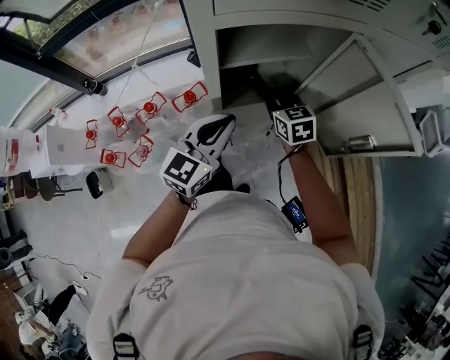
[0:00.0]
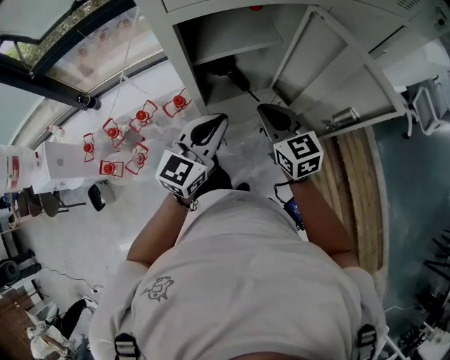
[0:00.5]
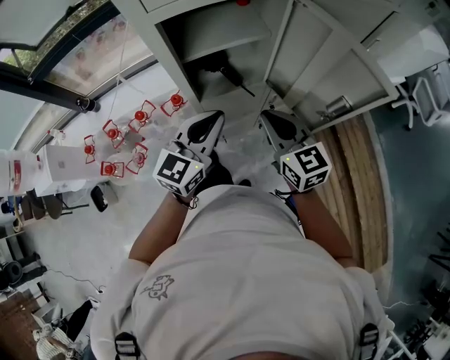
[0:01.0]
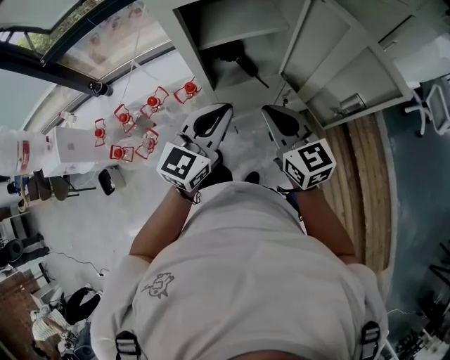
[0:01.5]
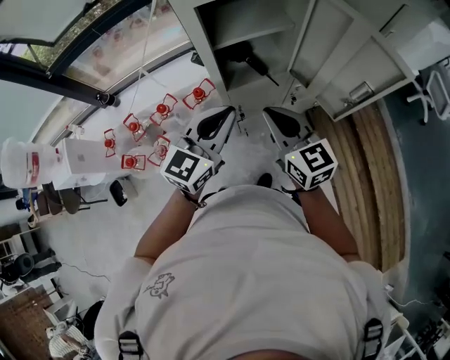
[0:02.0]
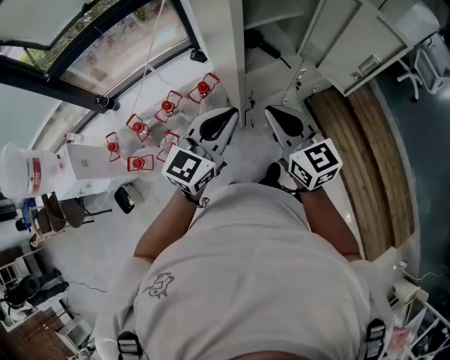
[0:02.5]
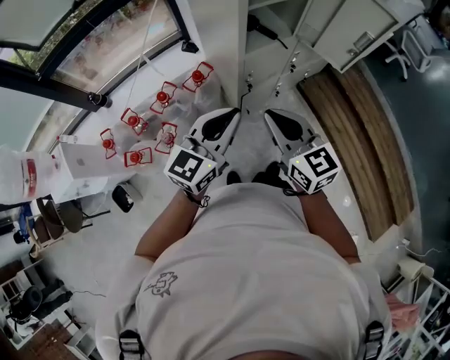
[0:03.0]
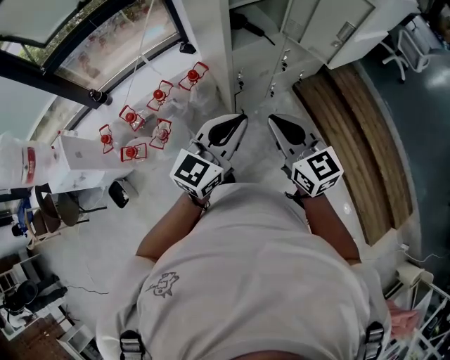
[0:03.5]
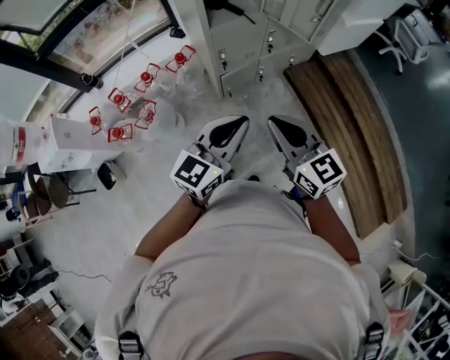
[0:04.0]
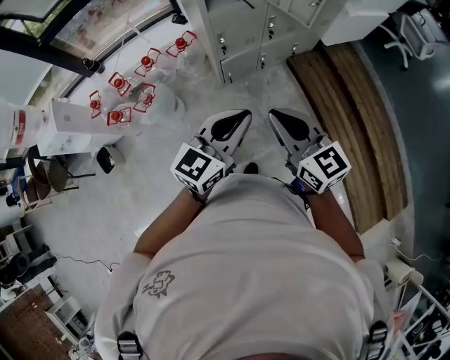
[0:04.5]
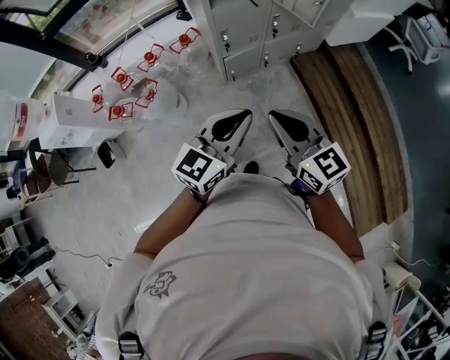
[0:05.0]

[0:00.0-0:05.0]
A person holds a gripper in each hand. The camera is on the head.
0:00.0 to 0:02.5: The left gripper is displaced backward and to the left by about 20 cm. The right gripper goes roughly 30 cm backward and upward, and swivels roughly 20 degrees.
0:02.5 to 0:05.0: Both grippers move backward and to the right, about 35 cm.

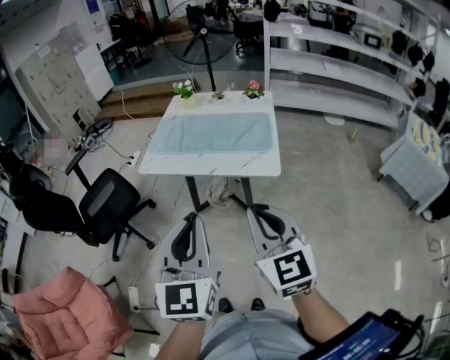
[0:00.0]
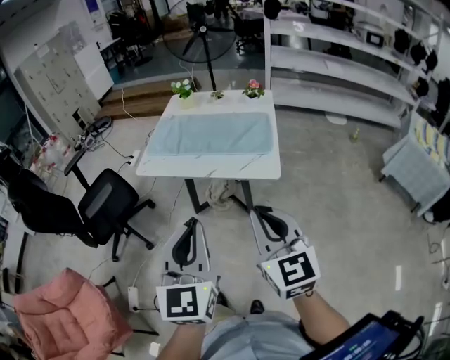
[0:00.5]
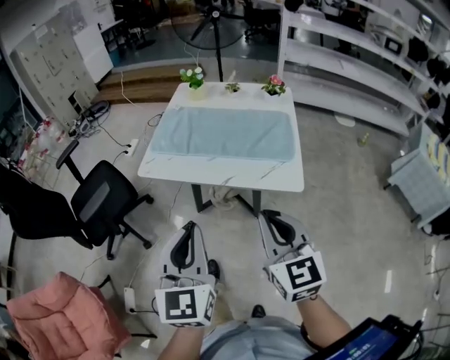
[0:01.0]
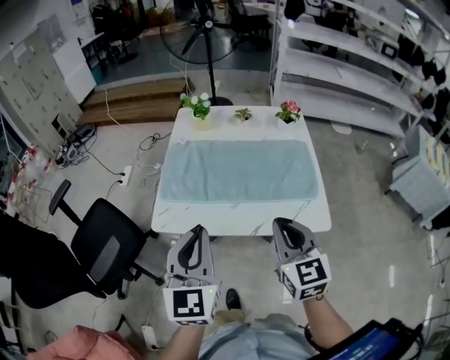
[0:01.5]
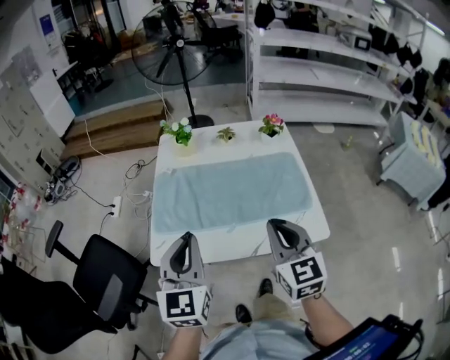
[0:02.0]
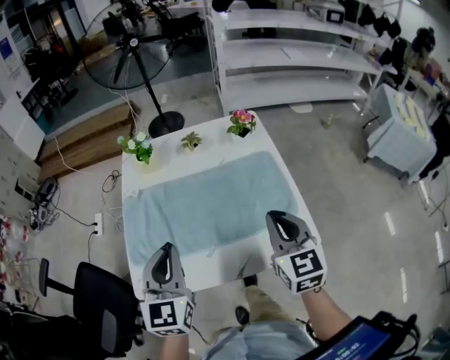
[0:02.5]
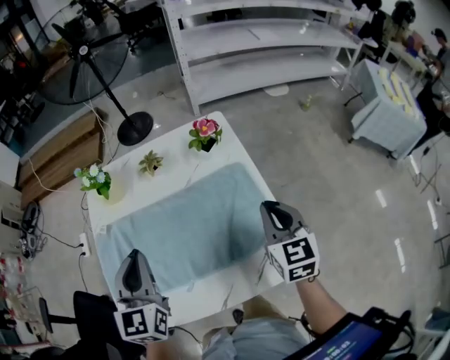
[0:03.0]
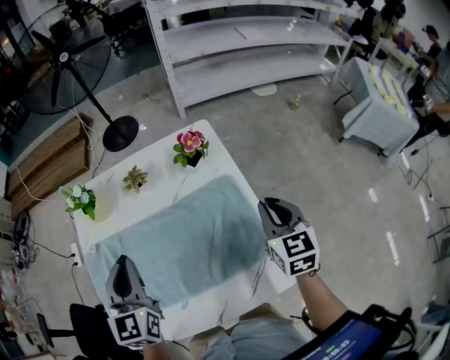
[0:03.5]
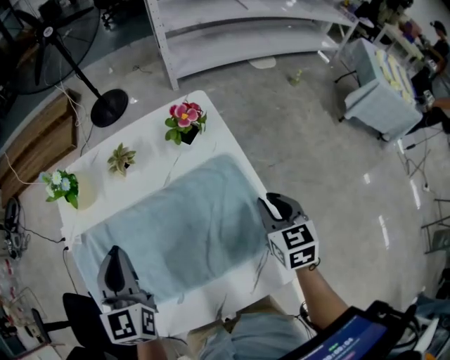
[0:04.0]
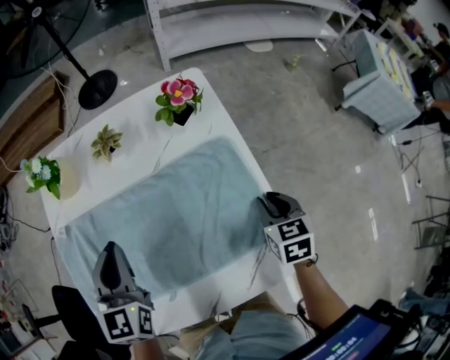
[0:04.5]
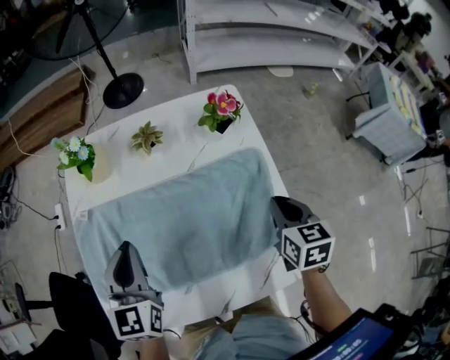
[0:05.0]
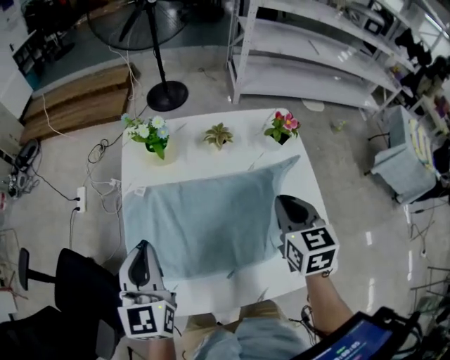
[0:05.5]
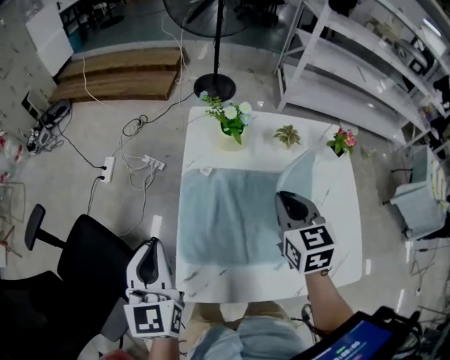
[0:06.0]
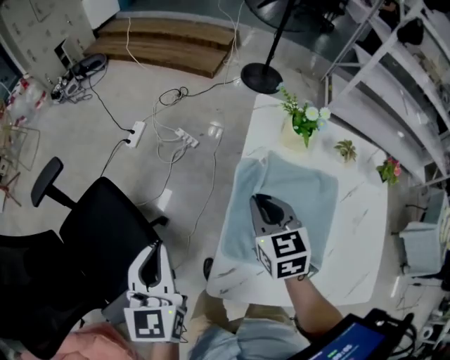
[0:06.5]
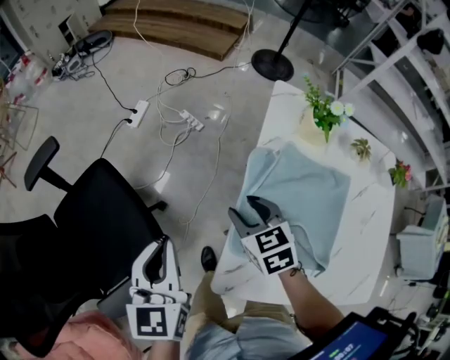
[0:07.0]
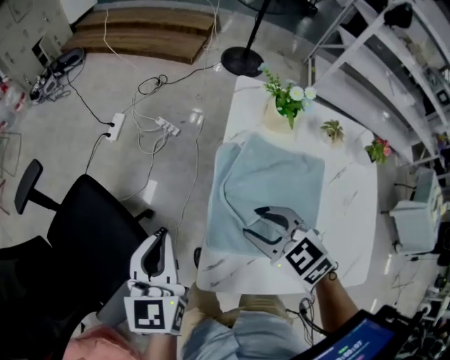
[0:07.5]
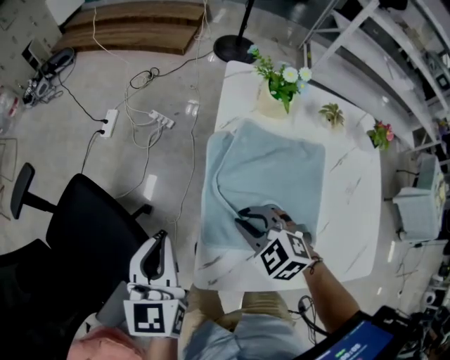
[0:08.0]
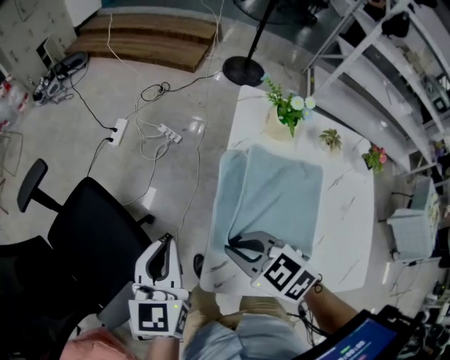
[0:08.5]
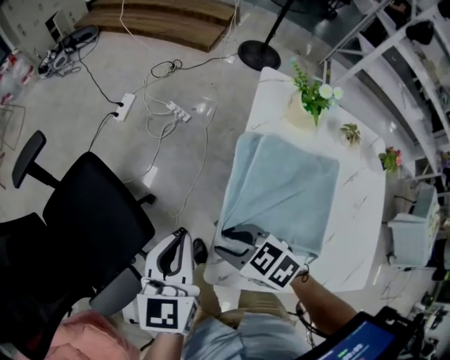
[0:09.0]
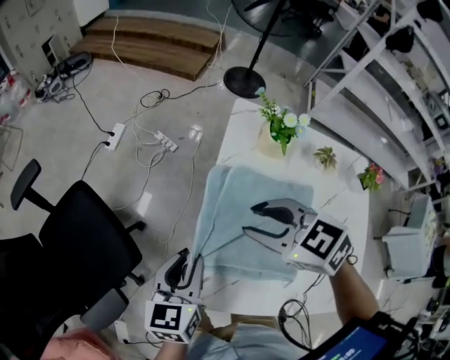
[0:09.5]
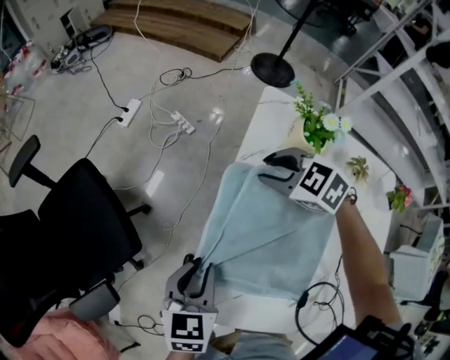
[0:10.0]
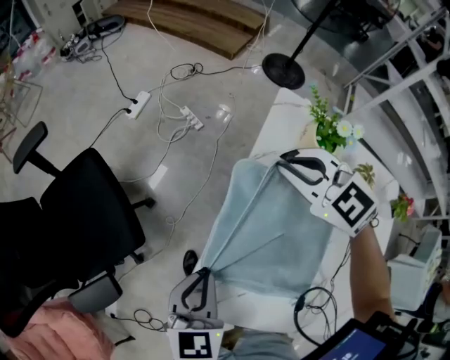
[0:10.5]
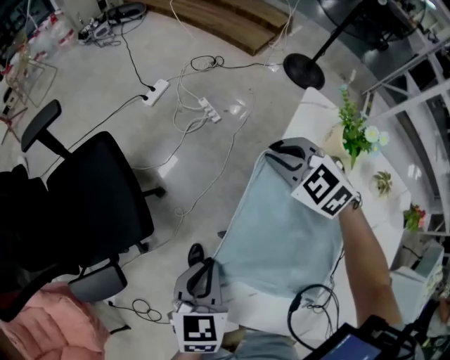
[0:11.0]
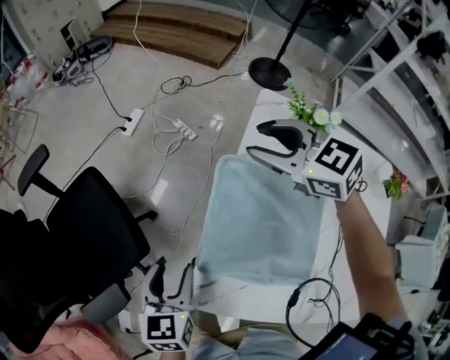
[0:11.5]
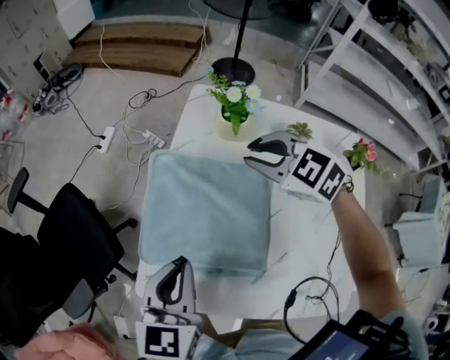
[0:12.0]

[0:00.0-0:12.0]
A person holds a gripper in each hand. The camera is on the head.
0:00.0 to 0:02.0: Both grippers move forward, about 35 cm.
0:02.0 to 0:04.0: The left gripper is displaced forward by about 30 cm; the right gripper moves forward, to the right and downward, some 40 cm, and rotates roughly 30 degrees.
0:04.0 to 0:06.0: The right gripper is displaced to the left by about 40 cm, and rotates some 20 degrees. The left gripper heads to the left and backward, covering about 35 cm, and turns by some 20 degrees.
0:06.0 to 0:08.0: The right gripper is displaced to the left and downward by some 25 cm, turns by approximately 50 degrees, and opens, then closes once more. The left gripper travels downward and to the left by some 10 cm.
0:08.0 to 0:10.0: The left gripper travels downward and to the right by some 10 cm, while the right gripper heads forward and to the right, covering roughly 20 cm.
0:10.0 to 0:12.0: The two grippers go approximately 15 cm upward, to the right and backward. The left gripper opens, then closes again.

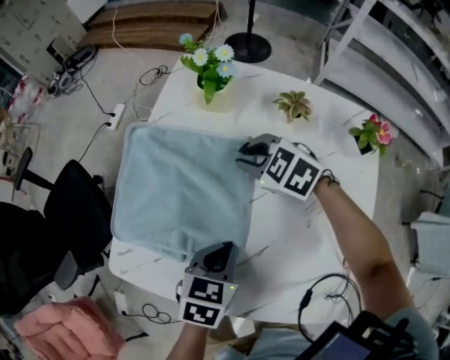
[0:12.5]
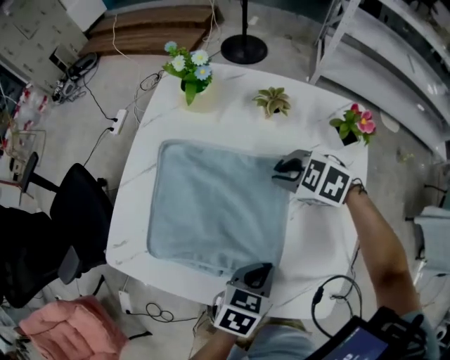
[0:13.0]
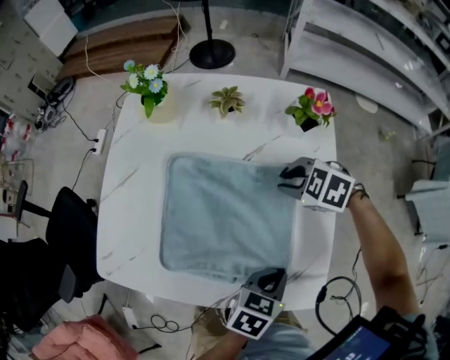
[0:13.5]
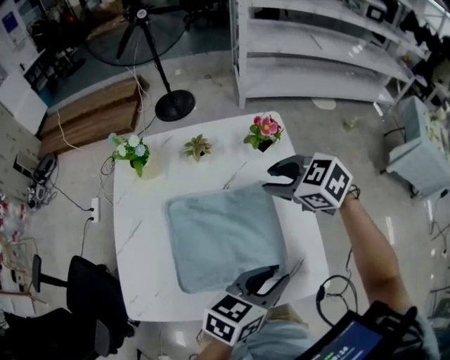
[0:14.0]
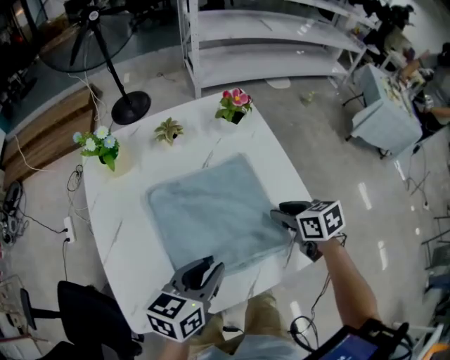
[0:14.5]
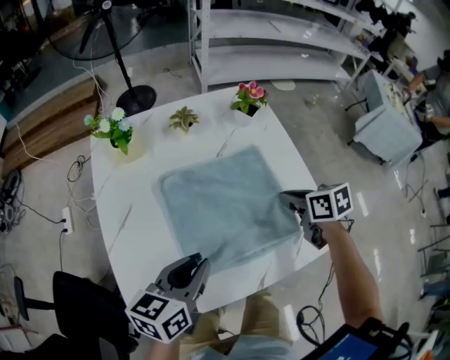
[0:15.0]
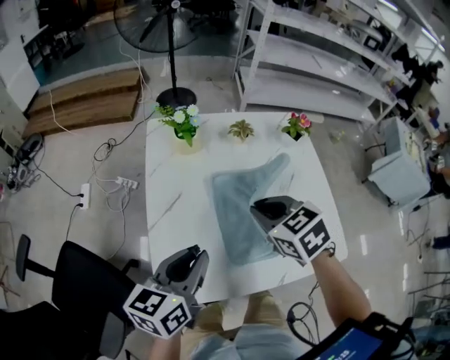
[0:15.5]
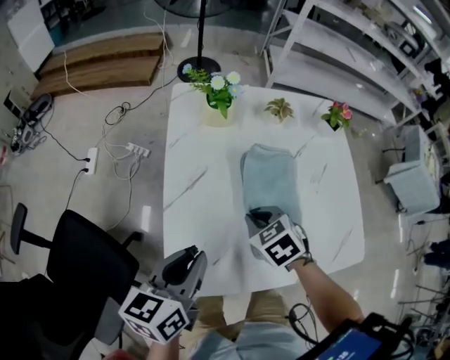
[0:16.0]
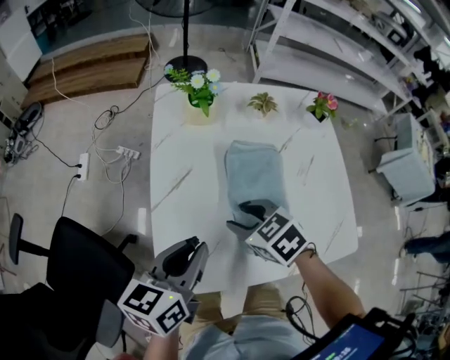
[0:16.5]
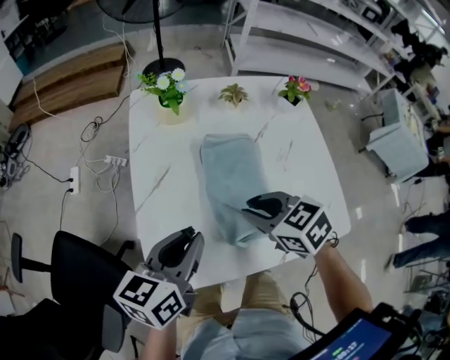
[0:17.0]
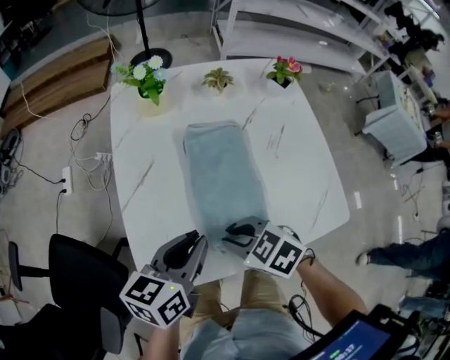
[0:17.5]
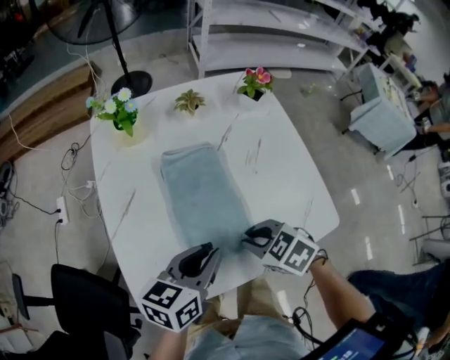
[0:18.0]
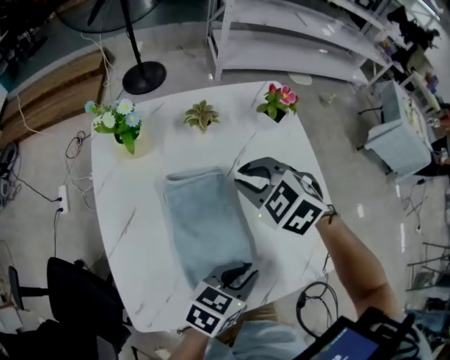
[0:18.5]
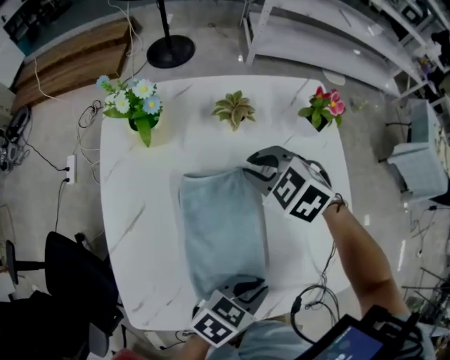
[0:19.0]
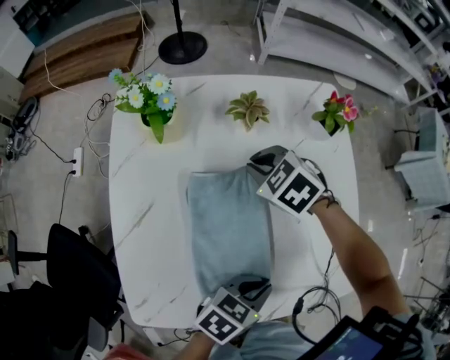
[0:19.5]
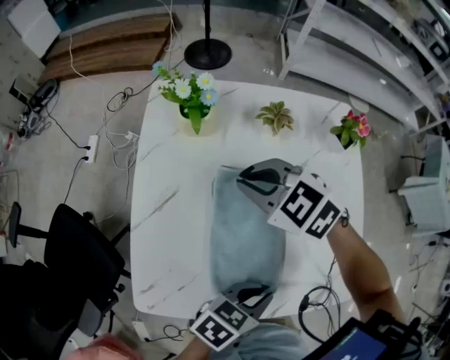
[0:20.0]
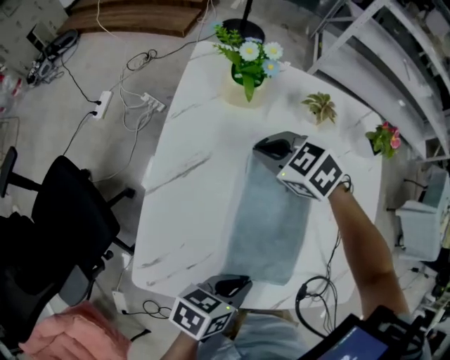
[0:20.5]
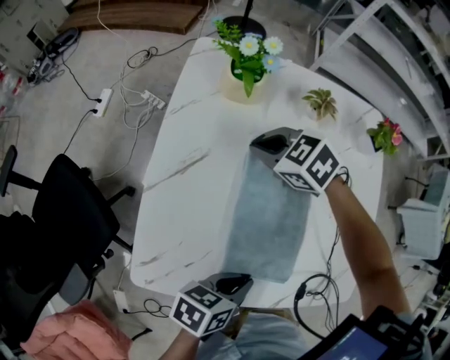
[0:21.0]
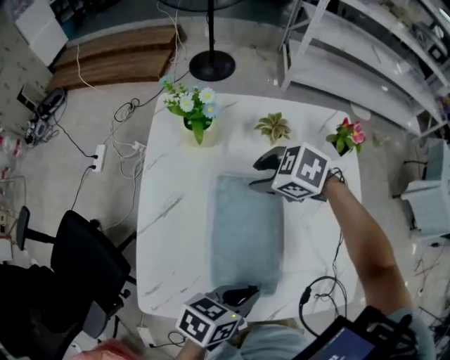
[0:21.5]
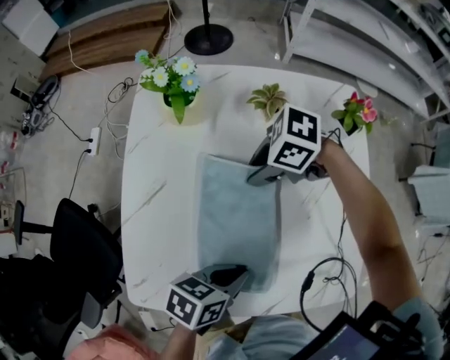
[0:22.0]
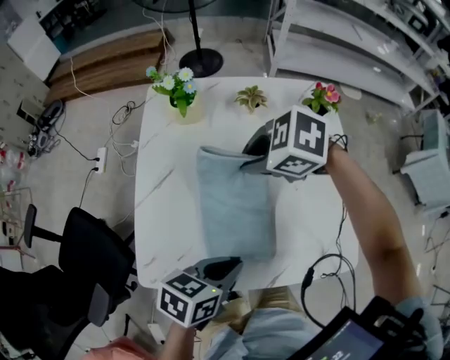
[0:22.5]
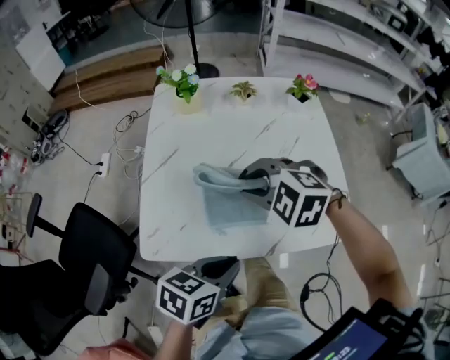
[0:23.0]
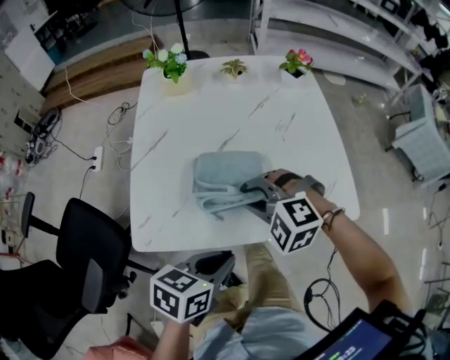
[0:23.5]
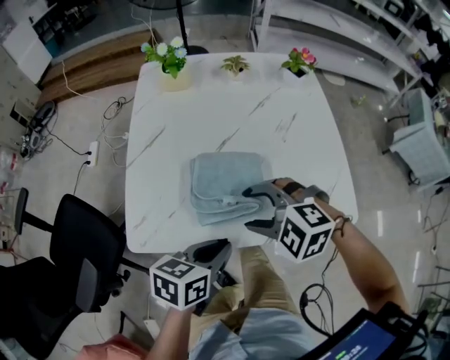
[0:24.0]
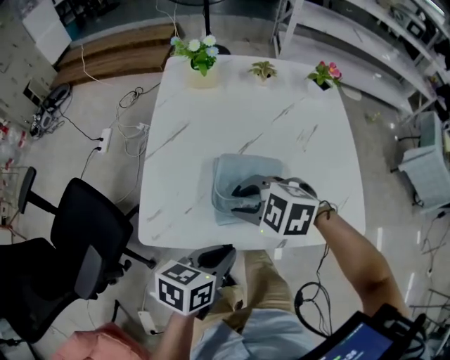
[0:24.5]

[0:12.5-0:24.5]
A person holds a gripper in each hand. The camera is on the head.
0:12.5 to 0:14.5: The left gripper travels upward by roughly 10 cm, rotates about 40 degrees, and opens; the right gripper moves approximately 15 cm upward and comes back, and rolls clockwise, seen from behind, by approximately 70 degrees.
0:14.5 to 0:16.5: The right gripper shifts about 35 cm to the left, swivels about 40 degrees, and closes, then opens again, while the left gripper moves to the left, roughly 20 cm, and swivels approximately 20 degrees.
0:16.5 to 0:18.5: The left gripper shifts by some 25 cm, and rotates approximately 40 degrees. Meanwhile the right gripper moves up and down over about 5 cm, changing direction 2 times, turns by some 20 degrees, and closes its fingers.
0:18.5 to 0:20.5: The left gripper changes place by some 10 cm, and rotates some 30 degrees, while the right gripper moves up and down over roughly 10 cm, changing direction 2 times, and changes its angle by approximately 20 degrees.
0:20.5 to 0:22.5: The left gripper goes up and down, roughly 5 cm each way, reversing 2 times. The right gripper ends up some 15 cm from where it was, and opens and closes again.
0:22.5 to 0:24.5: The right gripper moves roughly 20 cm, and opens, then closes again; the left gripper moves roughly 10 cm.
